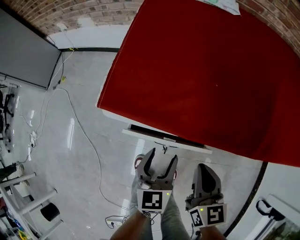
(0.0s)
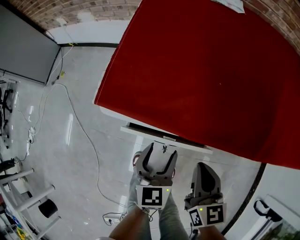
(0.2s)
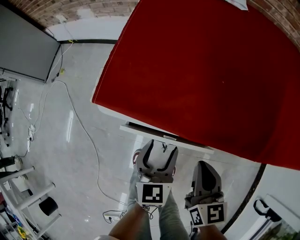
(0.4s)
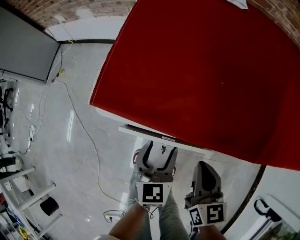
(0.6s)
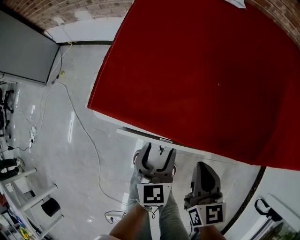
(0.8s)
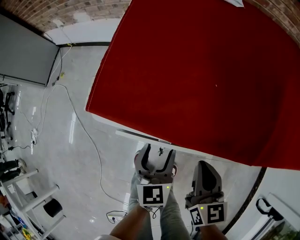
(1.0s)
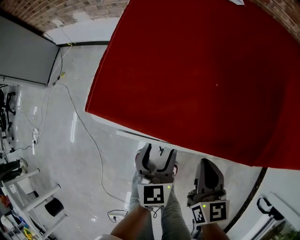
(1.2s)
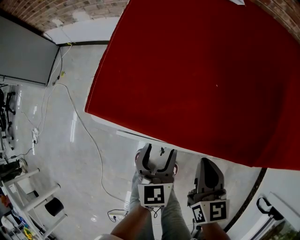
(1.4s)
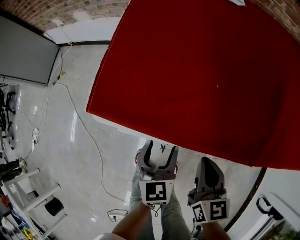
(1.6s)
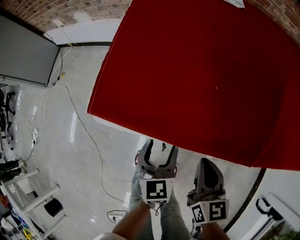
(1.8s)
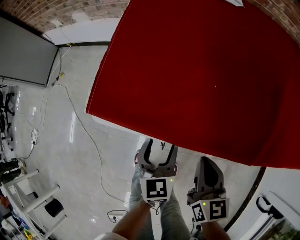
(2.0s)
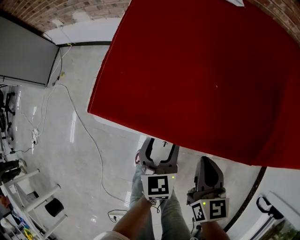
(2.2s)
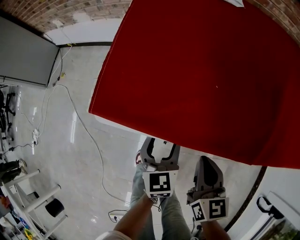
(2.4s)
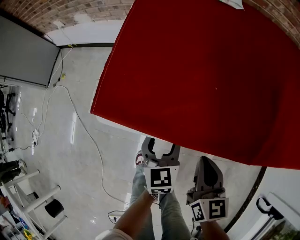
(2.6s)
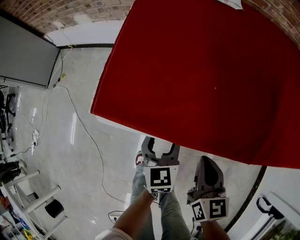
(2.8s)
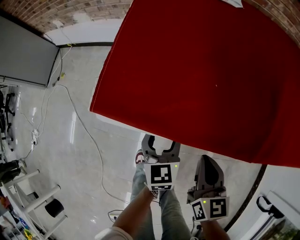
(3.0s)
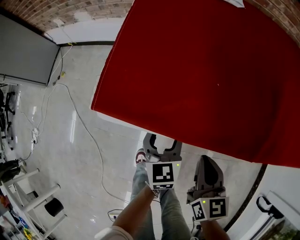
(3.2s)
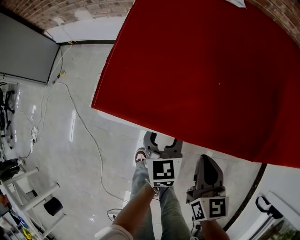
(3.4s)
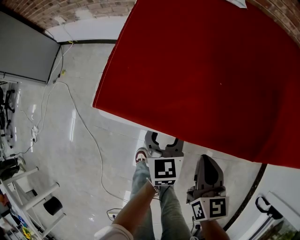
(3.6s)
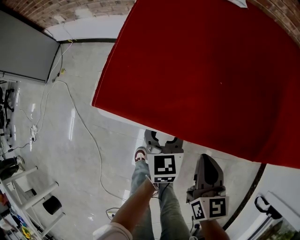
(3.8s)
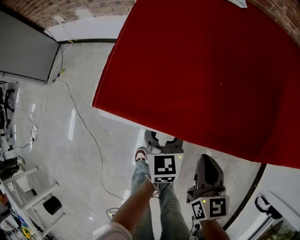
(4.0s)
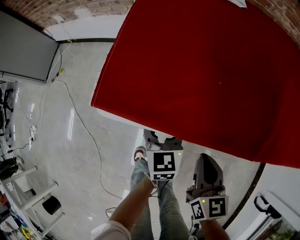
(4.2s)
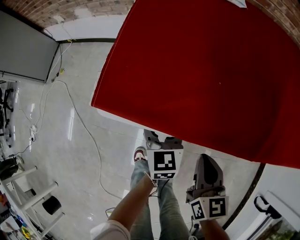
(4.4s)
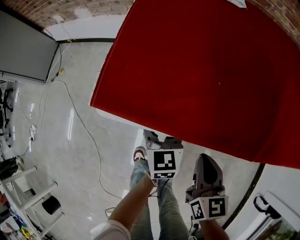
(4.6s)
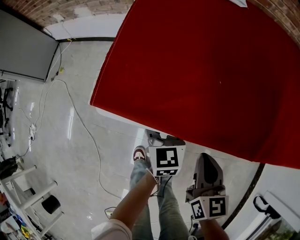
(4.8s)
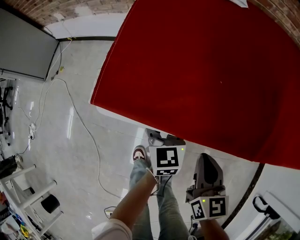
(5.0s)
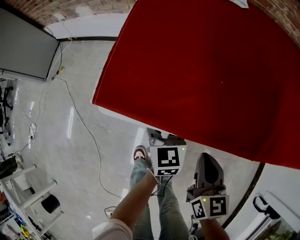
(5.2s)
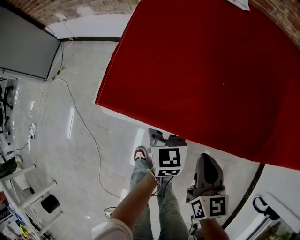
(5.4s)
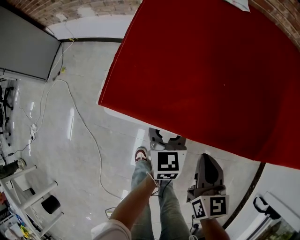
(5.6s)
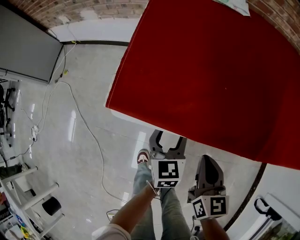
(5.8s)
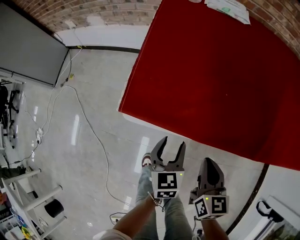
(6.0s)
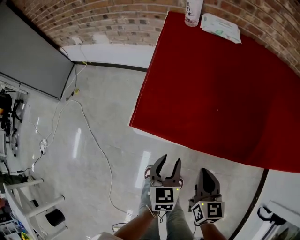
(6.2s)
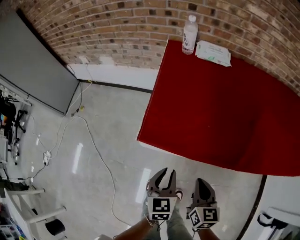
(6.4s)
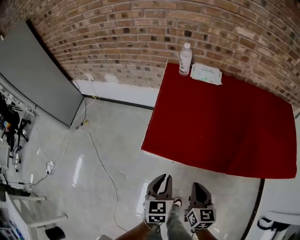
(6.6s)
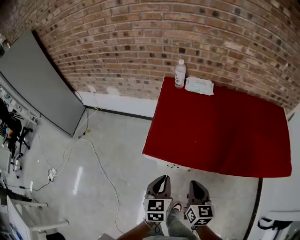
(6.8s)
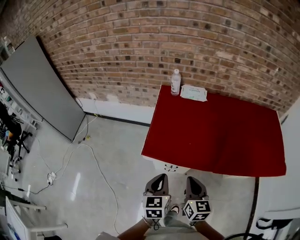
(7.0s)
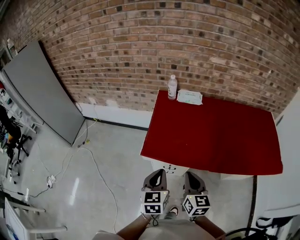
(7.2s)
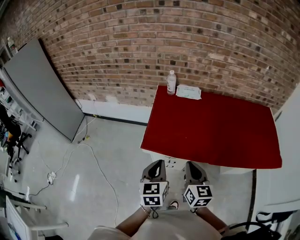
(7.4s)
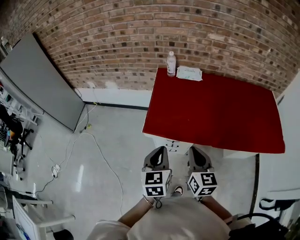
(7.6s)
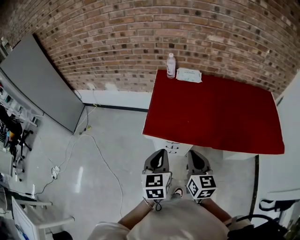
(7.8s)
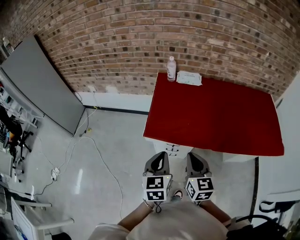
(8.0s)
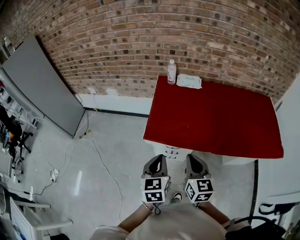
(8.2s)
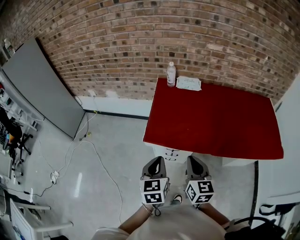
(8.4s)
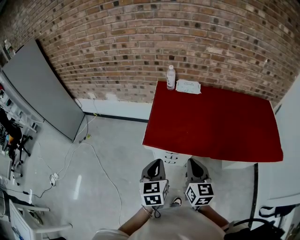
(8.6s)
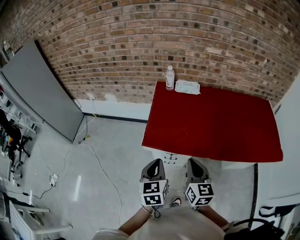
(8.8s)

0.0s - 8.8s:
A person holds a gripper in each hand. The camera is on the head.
0.0s - 1.4s: The grippers move only a little.
1.4s - 3.0s: The left gripper travels forward by about 5 cm.
3.0s - 5.8s: The grippers stay close to where they were, moving slightly.
5.8s - 7.4s: The grippers both shift upward by approximately 35 cm. The left gripper closes its fingers.
7.4s - 8.8s: There are only small adjustments of the grippers.

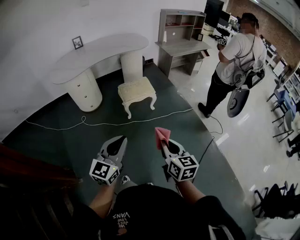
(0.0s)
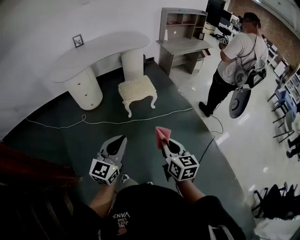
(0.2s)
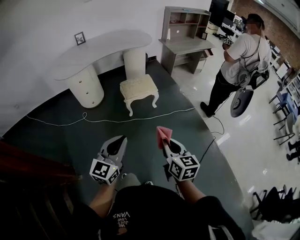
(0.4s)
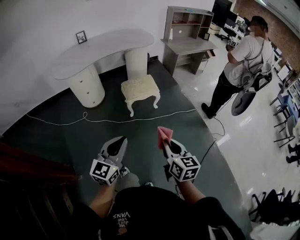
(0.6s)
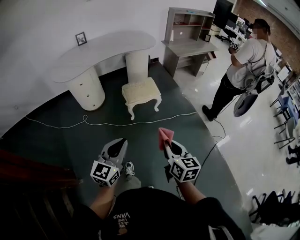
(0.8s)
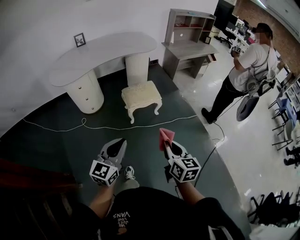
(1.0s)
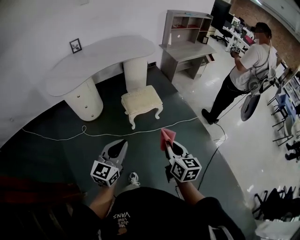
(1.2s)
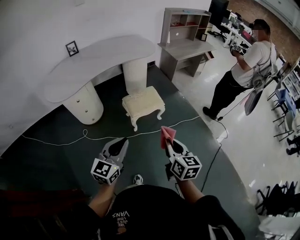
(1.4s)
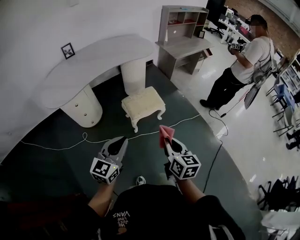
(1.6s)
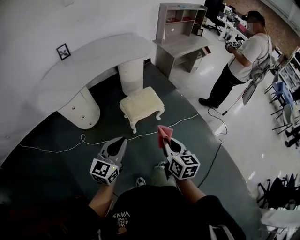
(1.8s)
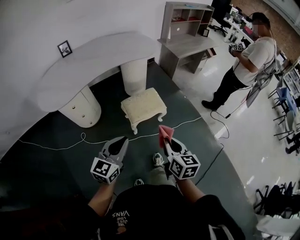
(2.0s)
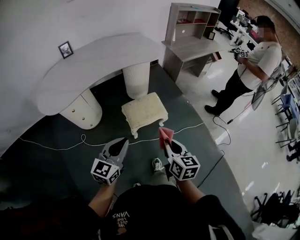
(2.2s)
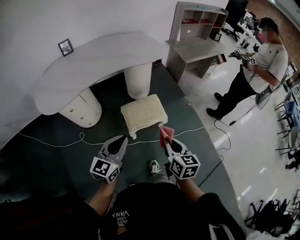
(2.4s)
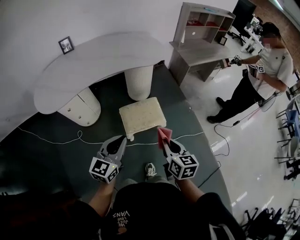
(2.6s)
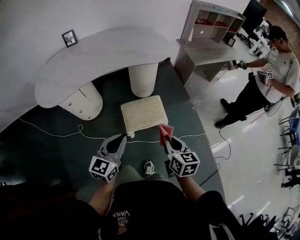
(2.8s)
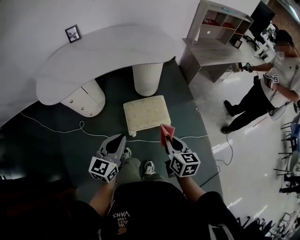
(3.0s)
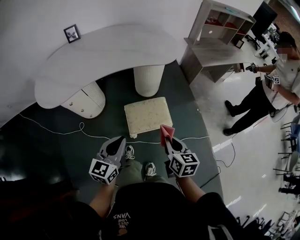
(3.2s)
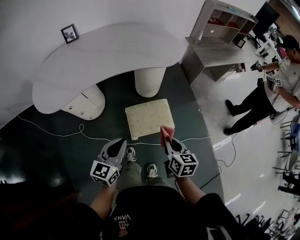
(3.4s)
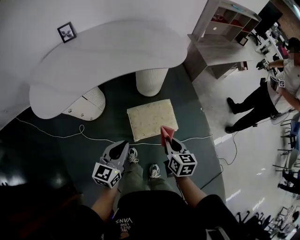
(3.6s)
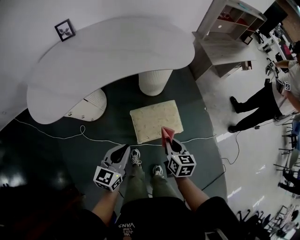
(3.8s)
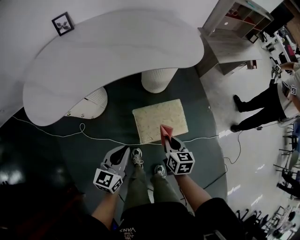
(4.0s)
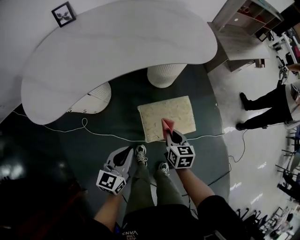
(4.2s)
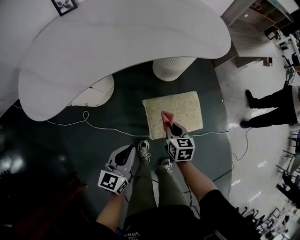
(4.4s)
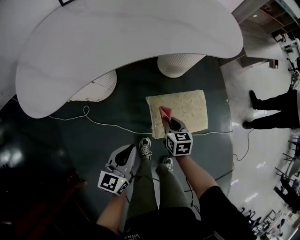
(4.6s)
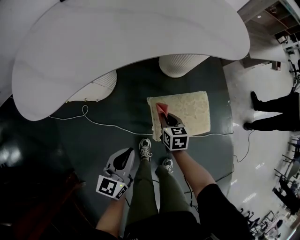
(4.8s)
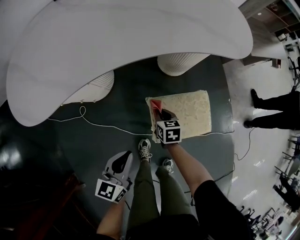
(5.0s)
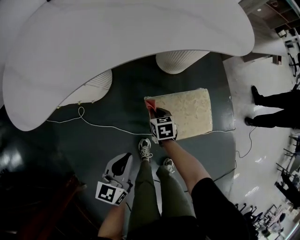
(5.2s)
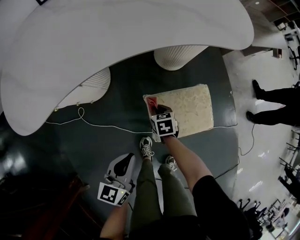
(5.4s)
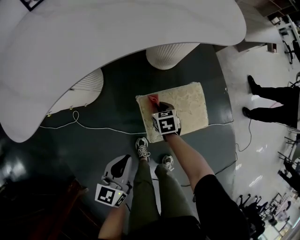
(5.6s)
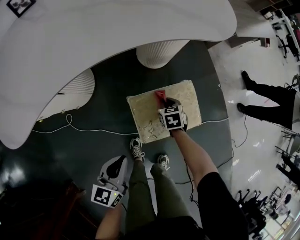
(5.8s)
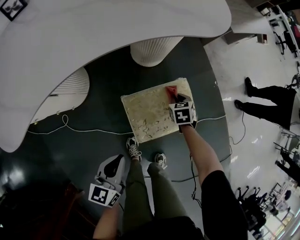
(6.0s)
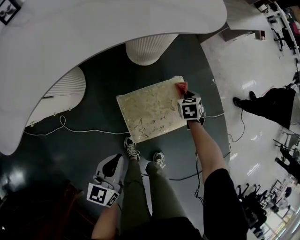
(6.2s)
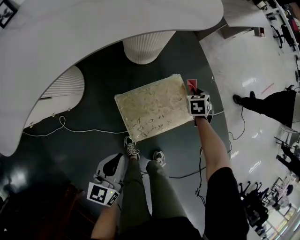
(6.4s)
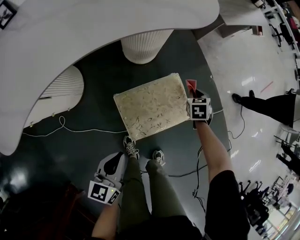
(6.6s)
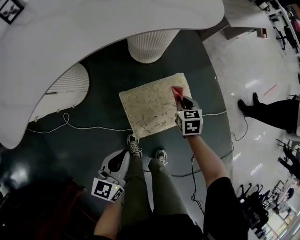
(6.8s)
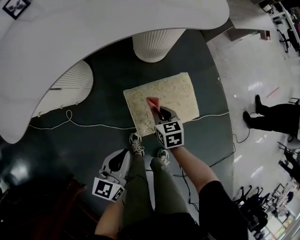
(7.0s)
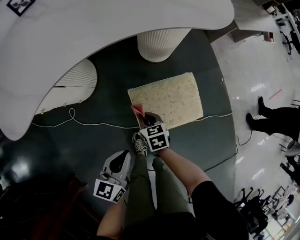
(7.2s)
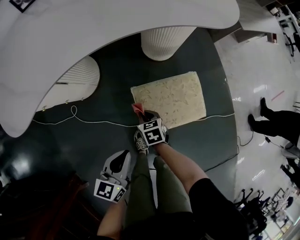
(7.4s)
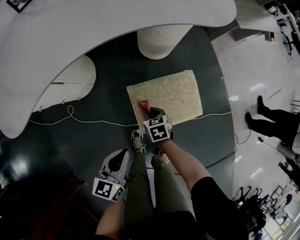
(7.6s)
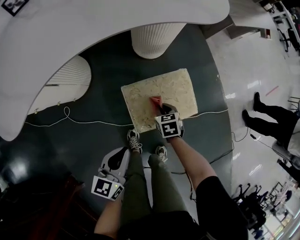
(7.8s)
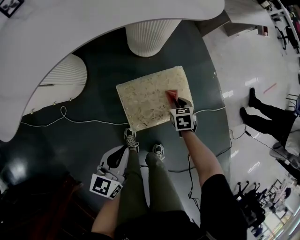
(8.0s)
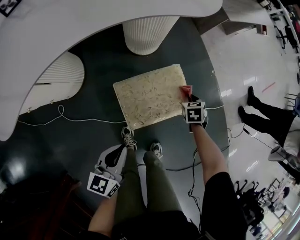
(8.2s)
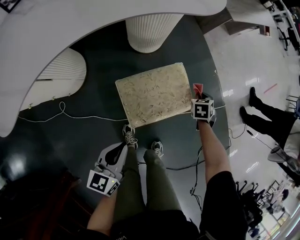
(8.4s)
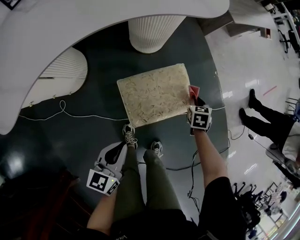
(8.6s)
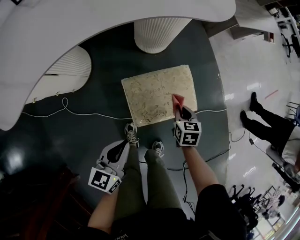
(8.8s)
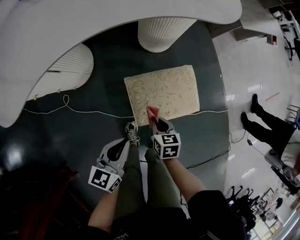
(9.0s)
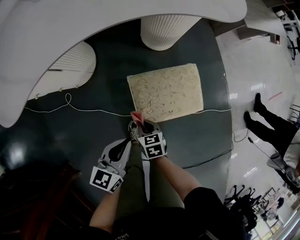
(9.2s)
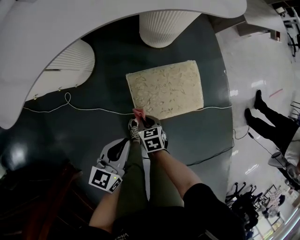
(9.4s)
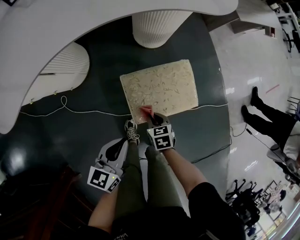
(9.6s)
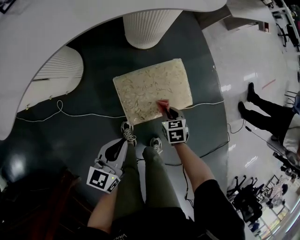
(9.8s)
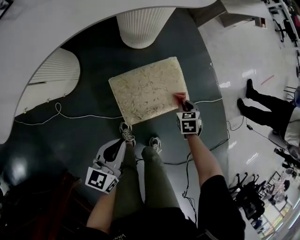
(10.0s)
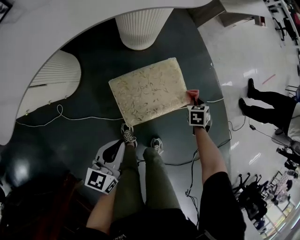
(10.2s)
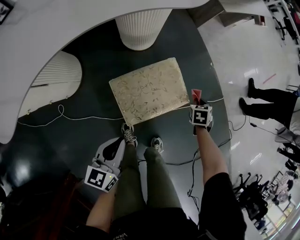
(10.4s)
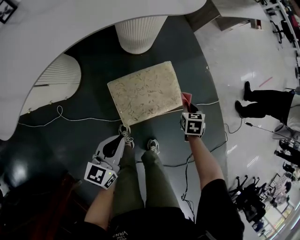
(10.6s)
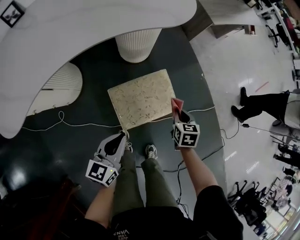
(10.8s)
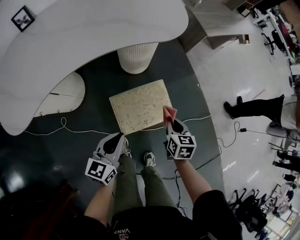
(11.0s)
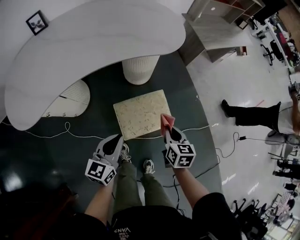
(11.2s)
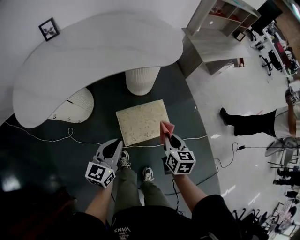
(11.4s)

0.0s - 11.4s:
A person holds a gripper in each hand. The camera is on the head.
0.0s - 1.4s: The two grippers go roughly 25 cm forward and to the left.
1.4s - 2.8s: The grippers both shift forward by some 30 cm.
2.8s - 4.2s: The left gripper goes about 25 cm downward, to the left and forward. Meanwhile the right gripper travels downward, forward and to the left by about 35 cm.
4.2s - 5.6s: The left gripper goes about 10 cm downward, while the right gripper moves downward and forward, about 25 cm, and turns by some 20 degrees.
7.2s - 8.6s: The right gripper ends up roughly 30 cm from where it was, and turns by roughly 30 degrees.
10.0s - 11.4s: The right gripper travels upward by some 30 cm, and rotates about 40 degrees. The left gripper heads upward, covering some 20 cm.

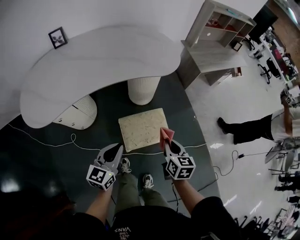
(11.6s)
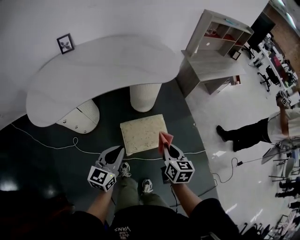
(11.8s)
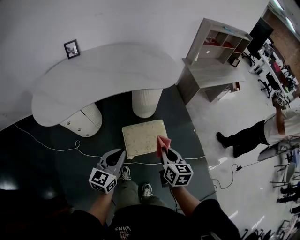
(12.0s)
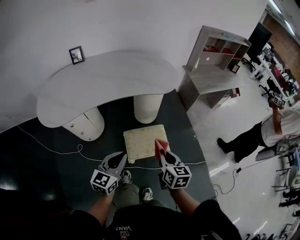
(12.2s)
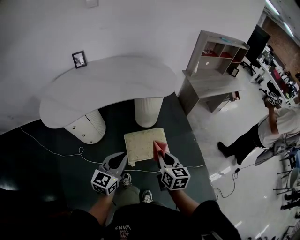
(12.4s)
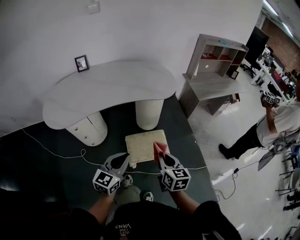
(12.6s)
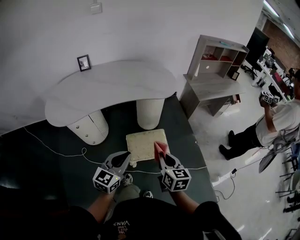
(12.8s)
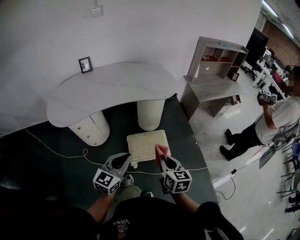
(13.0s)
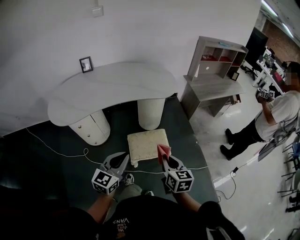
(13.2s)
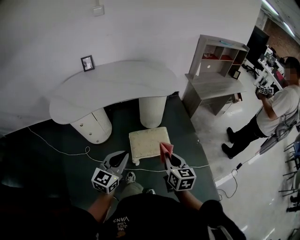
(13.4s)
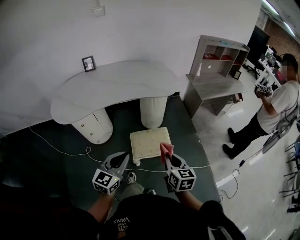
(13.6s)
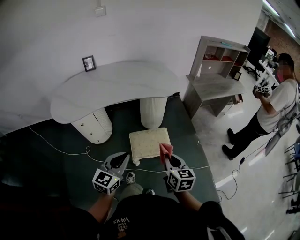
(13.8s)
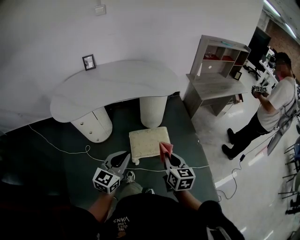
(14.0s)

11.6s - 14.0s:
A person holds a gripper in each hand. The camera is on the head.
11.6s - 12.8s: The left gripper heads upward, backward and to the right, covering about 15 cm, while the right gripper moves upward and backward, some 15 cm.
12.8s - 14.0s: There are only small adjustments of the grippers.

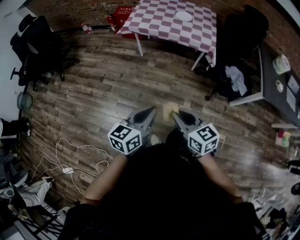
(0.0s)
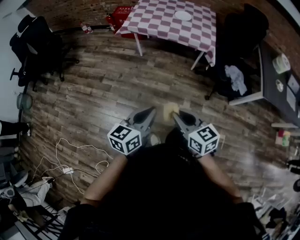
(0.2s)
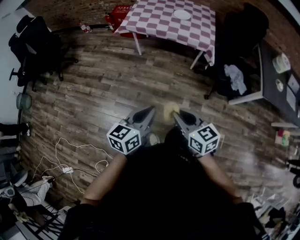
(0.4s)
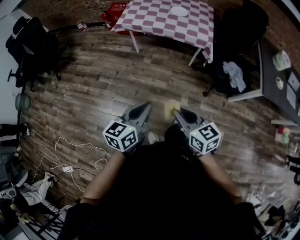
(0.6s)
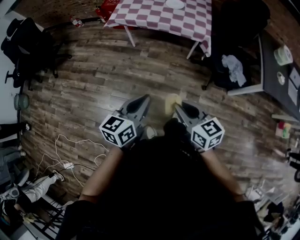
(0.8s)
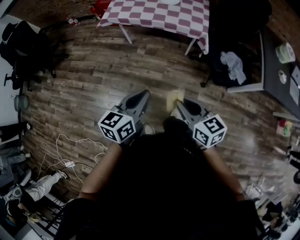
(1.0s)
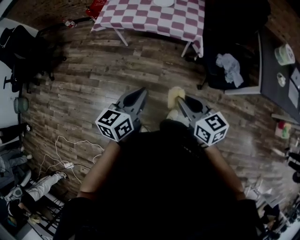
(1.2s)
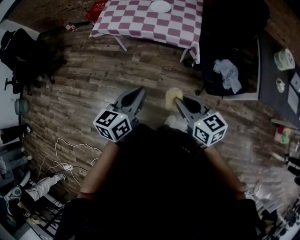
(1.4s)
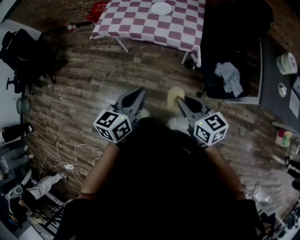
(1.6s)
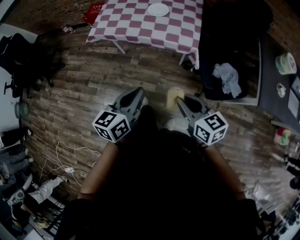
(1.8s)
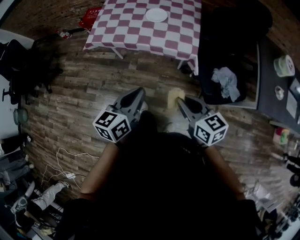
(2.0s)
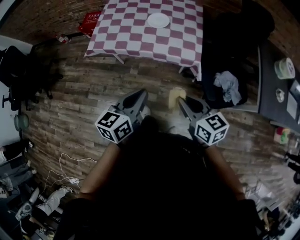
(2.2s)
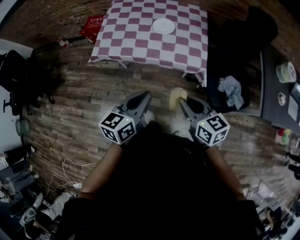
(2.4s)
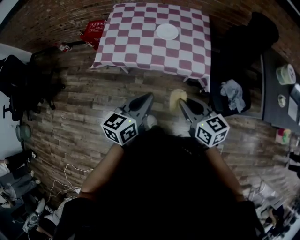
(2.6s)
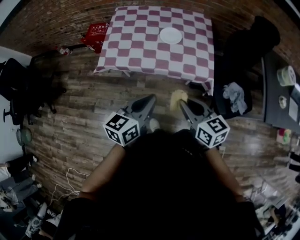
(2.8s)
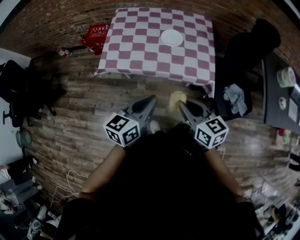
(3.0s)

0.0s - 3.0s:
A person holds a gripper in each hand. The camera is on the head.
0.0s - 1.6s: The left gripper goes approximately 30 cm forward and to the right. The right gripper is displaced to the right and forward by some 30 cm.
1.6s - 3.0s: Both grippers travel together forward and to the left, roughly 25 cm.
